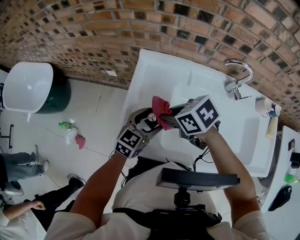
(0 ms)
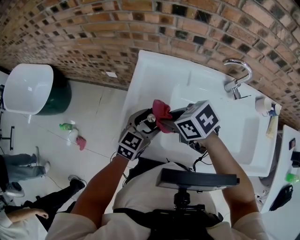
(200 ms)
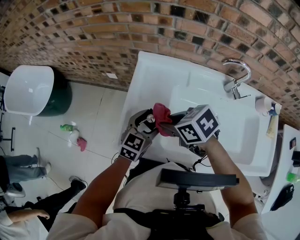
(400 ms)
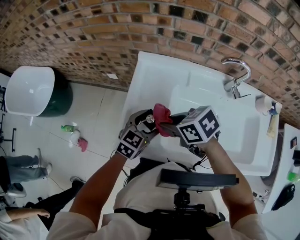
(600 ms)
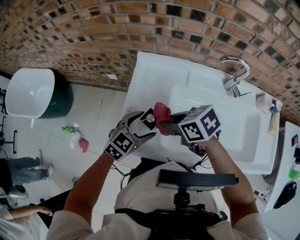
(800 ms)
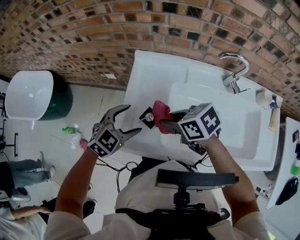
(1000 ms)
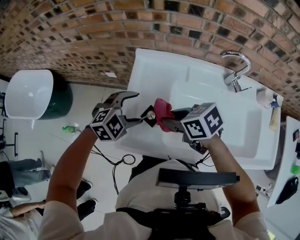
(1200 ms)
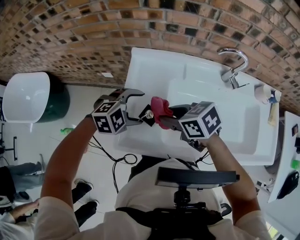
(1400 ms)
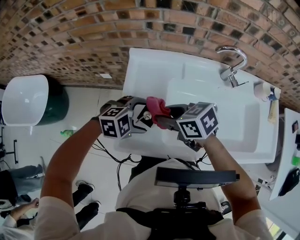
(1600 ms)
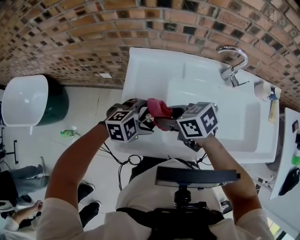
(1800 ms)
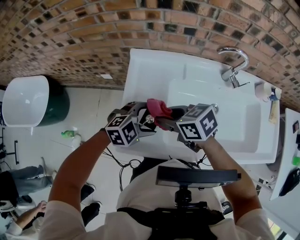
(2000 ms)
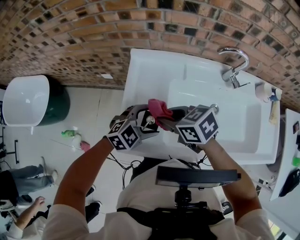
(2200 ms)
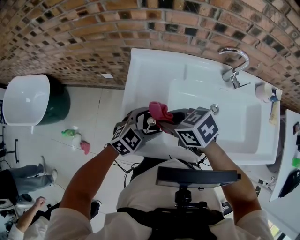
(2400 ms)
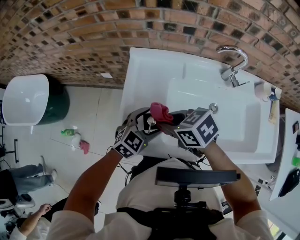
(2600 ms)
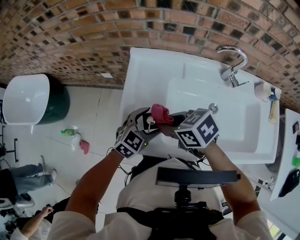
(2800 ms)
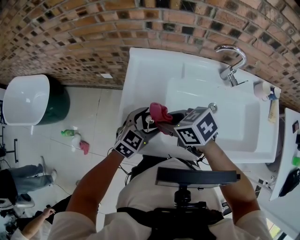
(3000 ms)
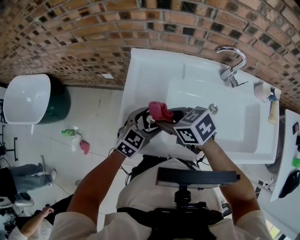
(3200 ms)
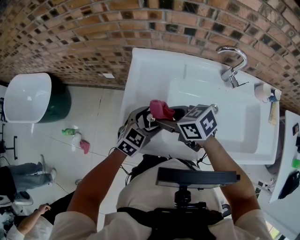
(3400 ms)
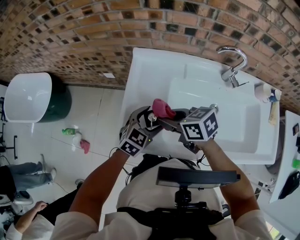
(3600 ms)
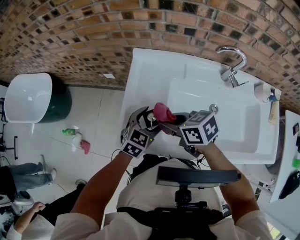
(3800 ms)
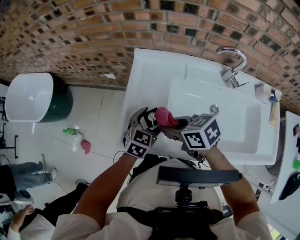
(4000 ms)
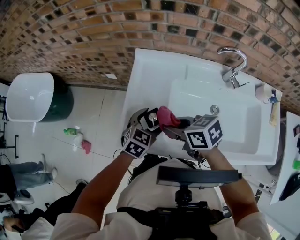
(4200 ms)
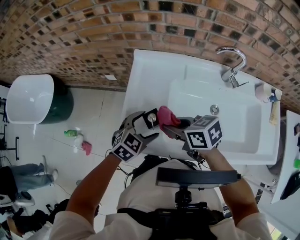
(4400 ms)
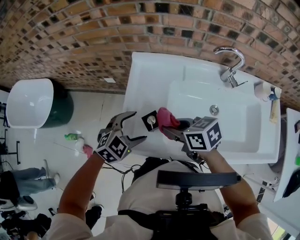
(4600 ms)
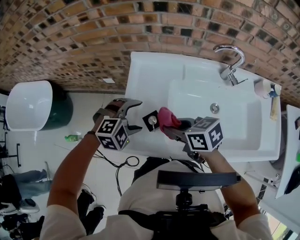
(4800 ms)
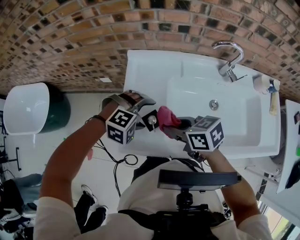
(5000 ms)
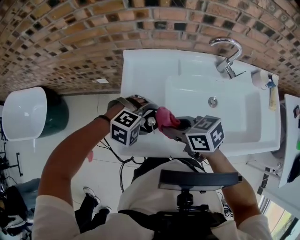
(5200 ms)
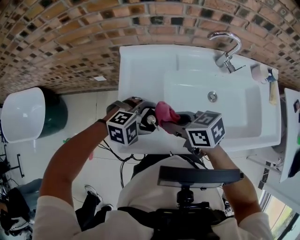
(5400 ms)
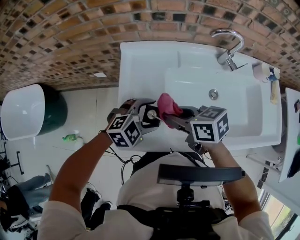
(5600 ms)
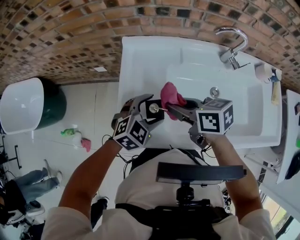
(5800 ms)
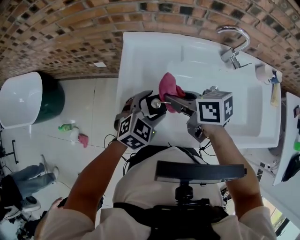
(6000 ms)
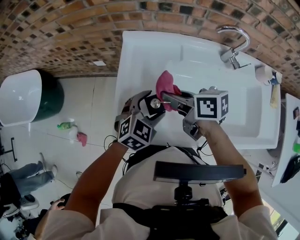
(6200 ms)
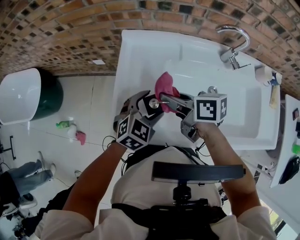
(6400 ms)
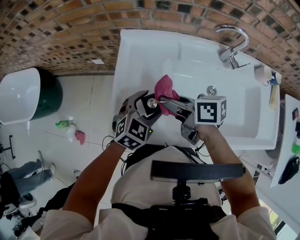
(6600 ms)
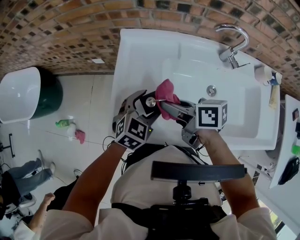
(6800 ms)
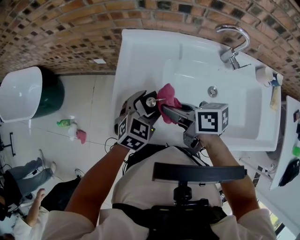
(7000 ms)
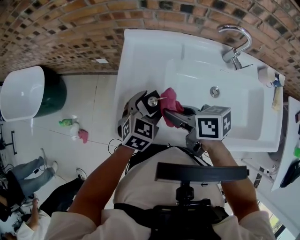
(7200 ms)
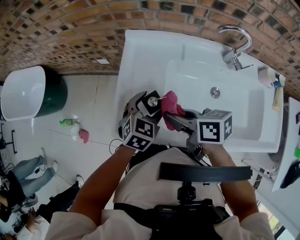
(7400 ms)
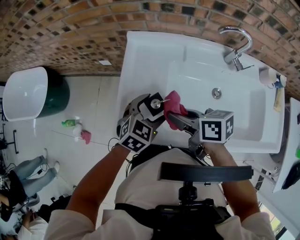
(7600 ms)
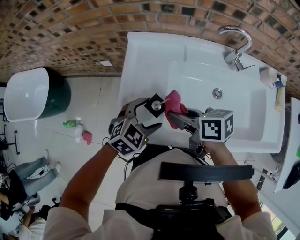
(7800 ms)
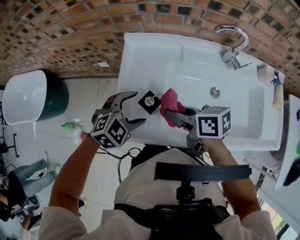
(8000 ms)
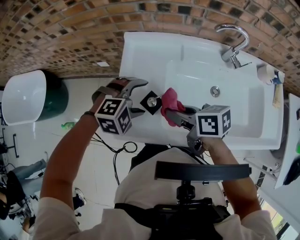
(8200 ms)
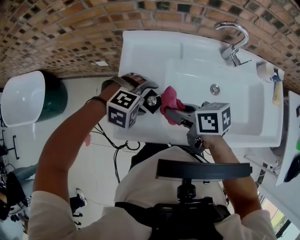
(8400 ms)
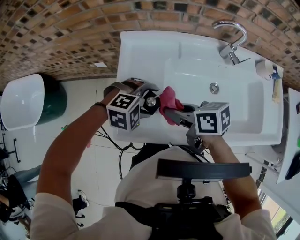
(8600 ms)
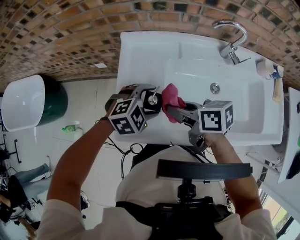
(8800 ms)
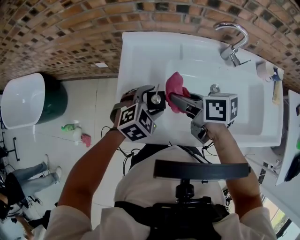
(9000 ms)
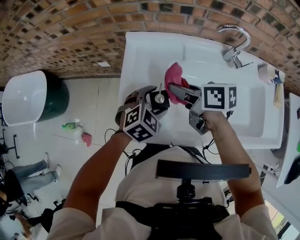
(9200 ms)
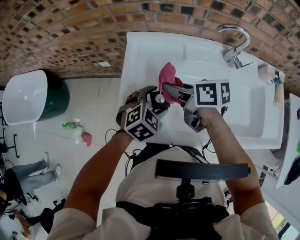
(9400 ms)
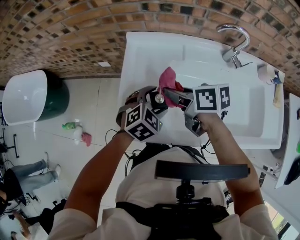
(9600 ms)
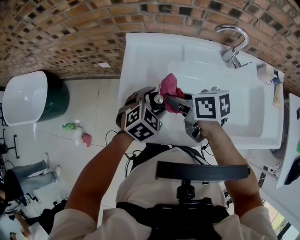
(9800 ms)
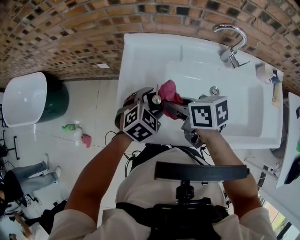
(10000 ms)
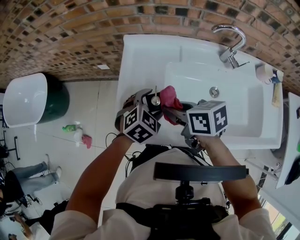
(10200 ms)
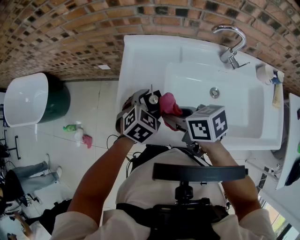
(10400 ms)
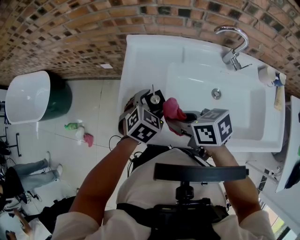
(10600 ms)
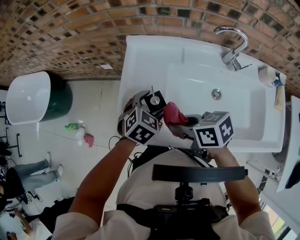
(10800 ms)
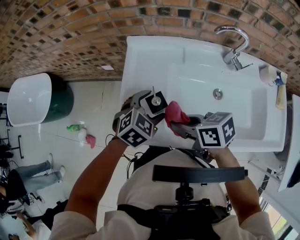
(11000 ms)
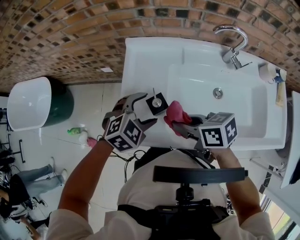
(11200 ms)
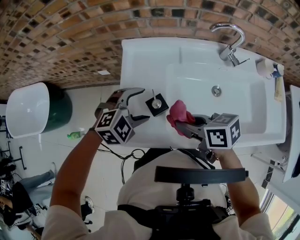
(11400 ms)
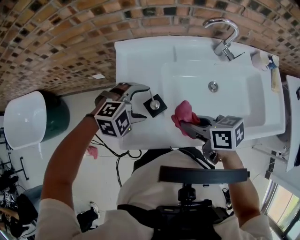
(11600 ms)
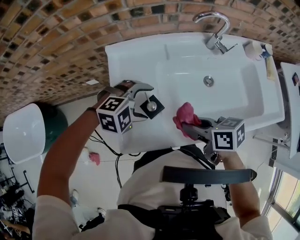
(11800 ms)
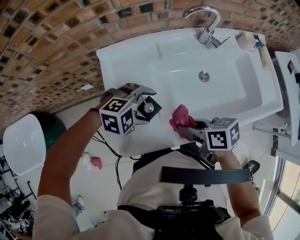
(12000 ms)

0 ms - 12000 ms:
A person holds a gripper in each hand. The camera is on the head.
0 ms - 1600 ms: The left gripper changes its angle by about 60 degrees.
1600 ms - 3000 ms: The left gripper rotates about 50 degrees.
3000 ms - 4400 ms: The right gripper opens, then closes again.
4400 ms - 6000 ms: The left gripper moves some 5 cm. Meanwhile the right gripper moves some 5 cm.
6000 ms - 7600 ms: The right gripper heads backward, covering roughly 5 cm.
7600 ms - 9000 ms: The right gripper changes place by approximately 5 cm. The left gripper changes its angle by some 20 degrees.
9000 ms - 10400 ms: The right gripper travels backward by about 5 cm.
10400 ms - 12000 ms: The right gripper moves some 5 cm, and turns by approximately 20 degrees. Meanwhile the left gripper twists approximately 60 degrees clockwise, seen from behind.

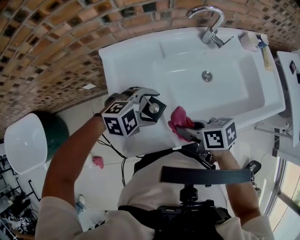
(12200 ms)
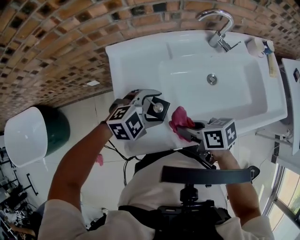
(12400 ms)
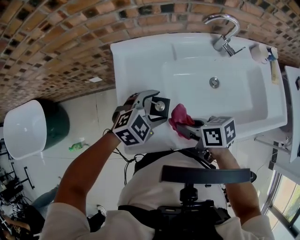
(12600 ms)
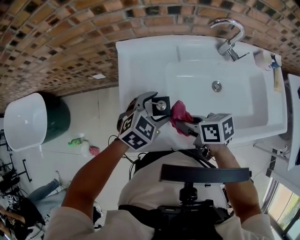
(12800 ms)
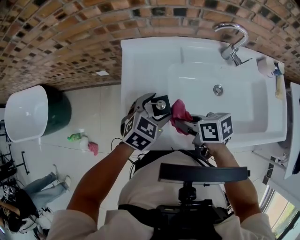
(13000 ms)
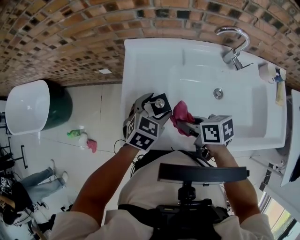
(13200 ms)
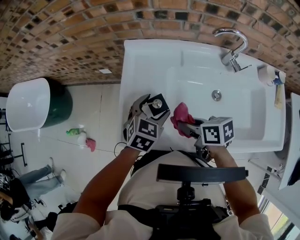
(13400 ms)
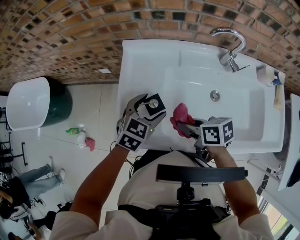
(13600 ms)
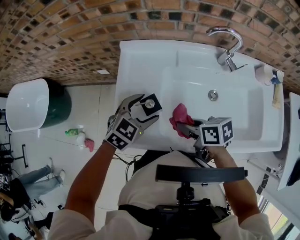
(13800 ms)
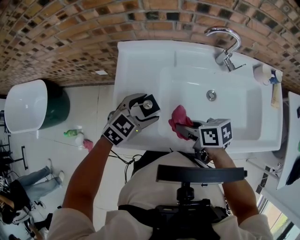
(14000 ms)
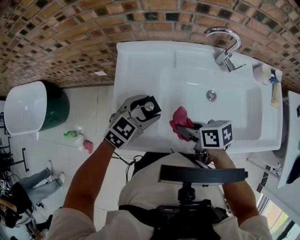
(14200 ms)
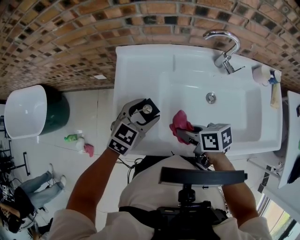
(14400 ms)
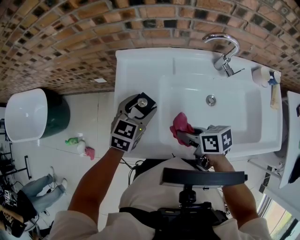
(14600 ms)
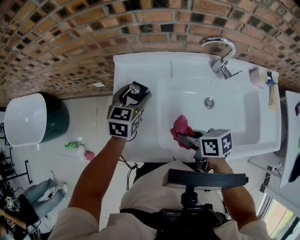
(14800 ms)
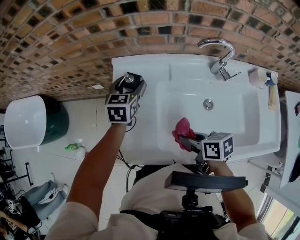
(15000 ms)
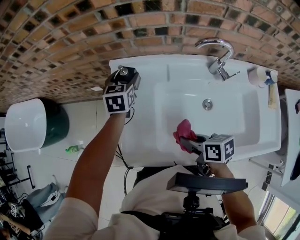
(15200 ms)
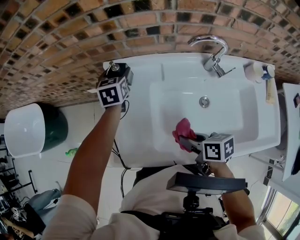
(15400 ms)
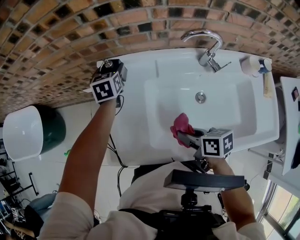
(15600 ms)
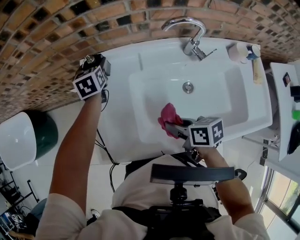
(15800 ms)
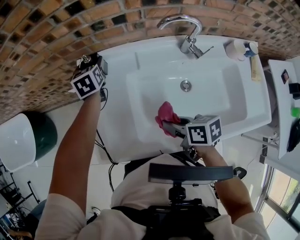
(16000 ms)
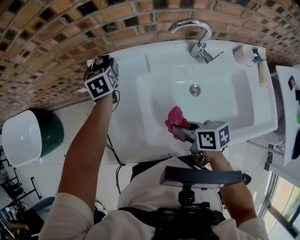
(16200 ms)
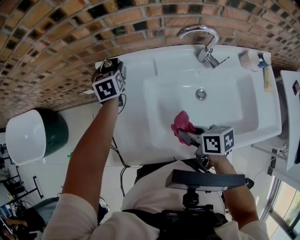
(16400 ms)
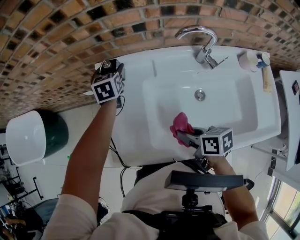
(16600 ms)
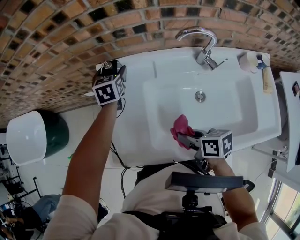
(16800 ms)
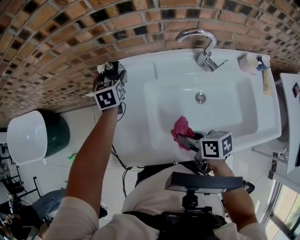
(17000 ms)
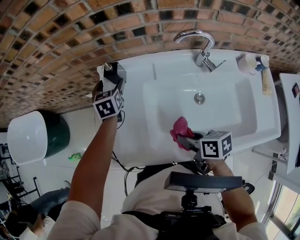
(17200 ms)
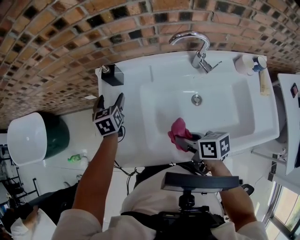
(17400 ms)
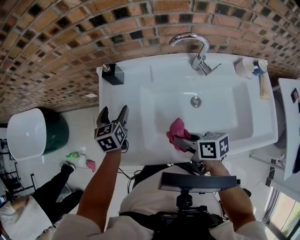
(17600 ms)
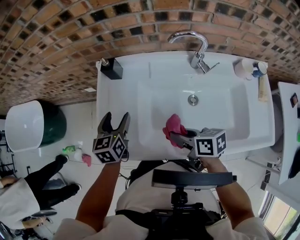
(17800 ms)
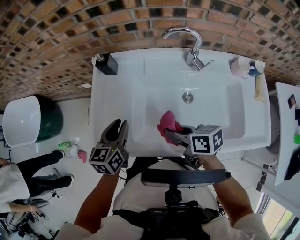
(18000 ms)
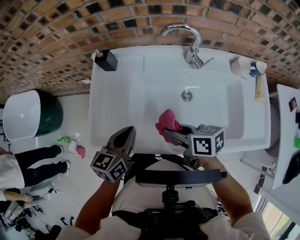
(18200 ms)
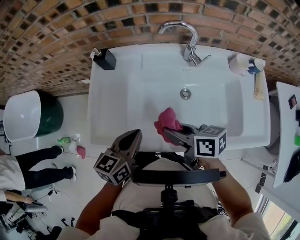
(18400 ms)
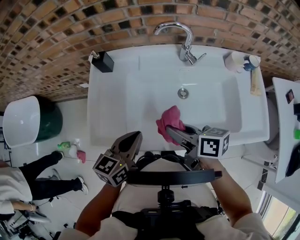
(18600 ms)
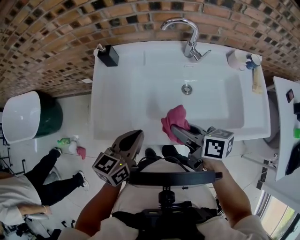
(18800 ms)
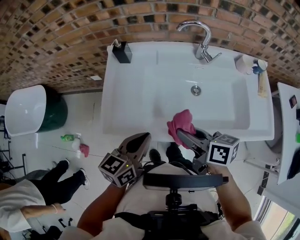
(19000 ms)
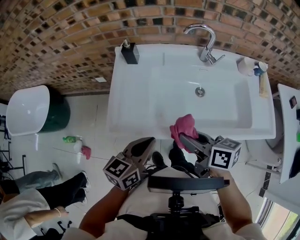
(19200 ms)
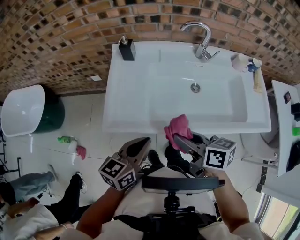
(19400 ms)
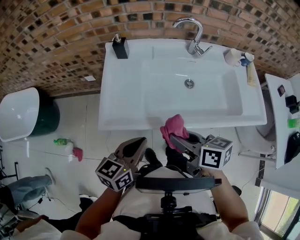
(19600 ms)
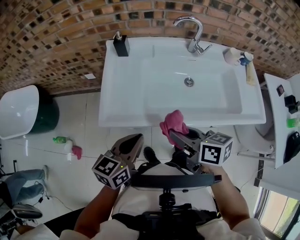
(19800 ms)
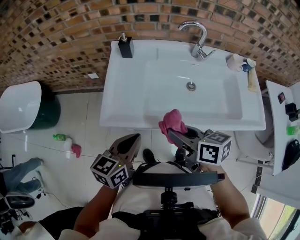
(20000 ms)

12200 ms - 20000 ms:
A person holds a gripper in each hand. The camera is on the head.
12200 ms - 13800 ms: The left gripper changes its angle by some 60 degrees.
13800 ms - 15400 ms: The right gripper heads to the right, covering approximately 5 cm; the left gripper goes approximately 25 cm forward, and changes its angle by roughly 40 degrees.
15400 ms - 16800 ms: The grippers move only a little.
16800 ms - 18400 ms: The left gripper moves backward, about 40 cm, changes its angle by about 30 degrees, and closes. The right gripper heads backward and upward, covering roughly 10 cm.
18400 ms - 20000 ms: The left gripper heads backward and to the left, covering about 20 cm, while the right gripper heads backward, to the left and upward, covering approximately 20 cm.

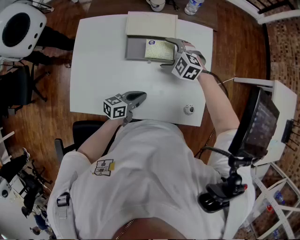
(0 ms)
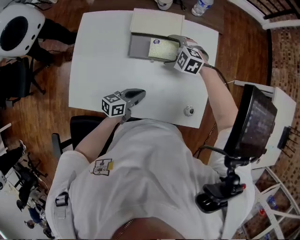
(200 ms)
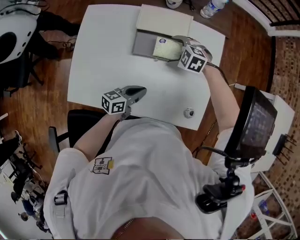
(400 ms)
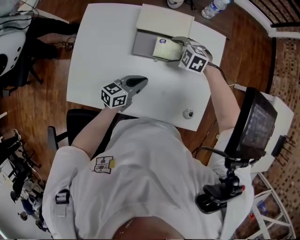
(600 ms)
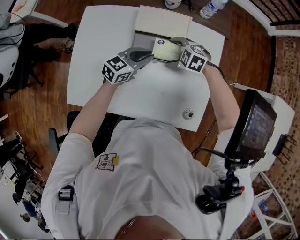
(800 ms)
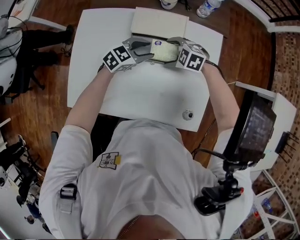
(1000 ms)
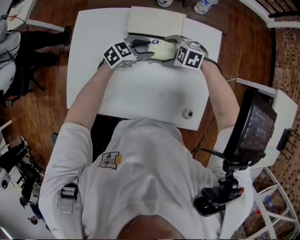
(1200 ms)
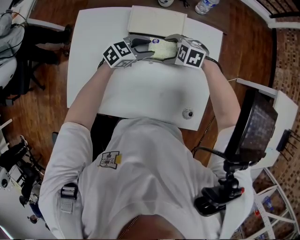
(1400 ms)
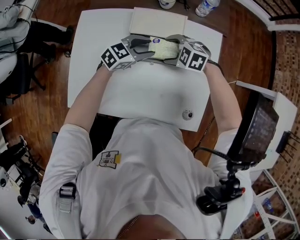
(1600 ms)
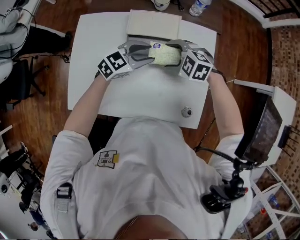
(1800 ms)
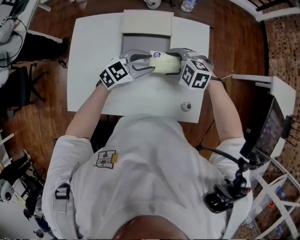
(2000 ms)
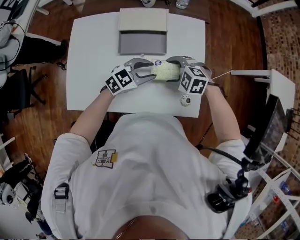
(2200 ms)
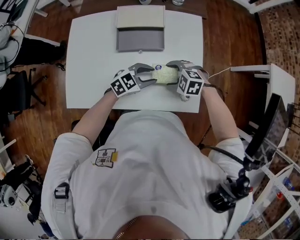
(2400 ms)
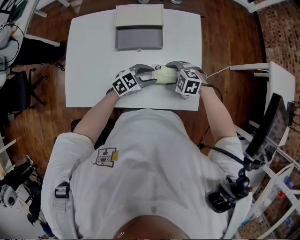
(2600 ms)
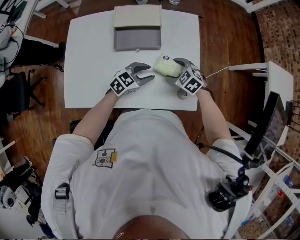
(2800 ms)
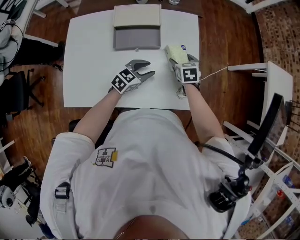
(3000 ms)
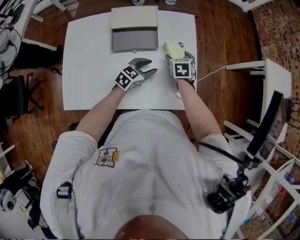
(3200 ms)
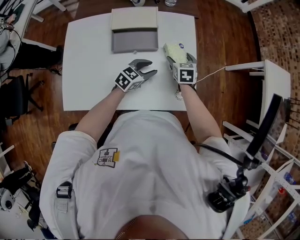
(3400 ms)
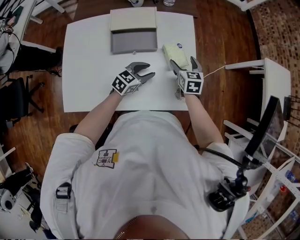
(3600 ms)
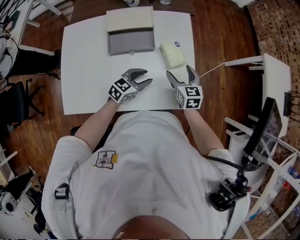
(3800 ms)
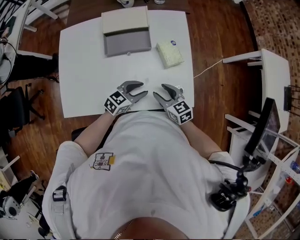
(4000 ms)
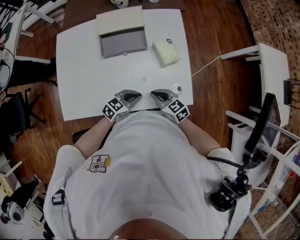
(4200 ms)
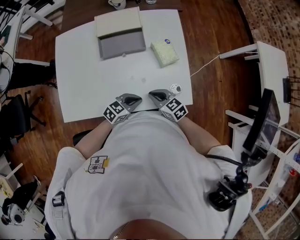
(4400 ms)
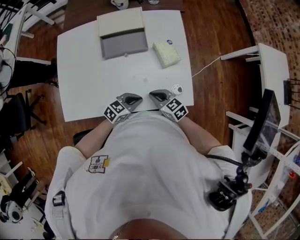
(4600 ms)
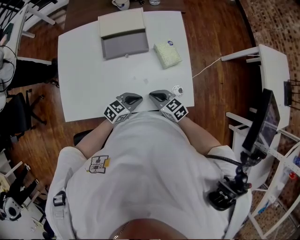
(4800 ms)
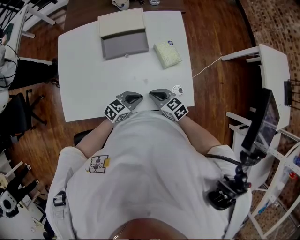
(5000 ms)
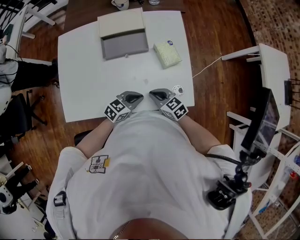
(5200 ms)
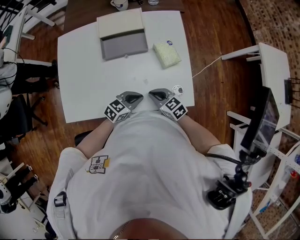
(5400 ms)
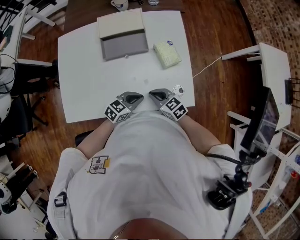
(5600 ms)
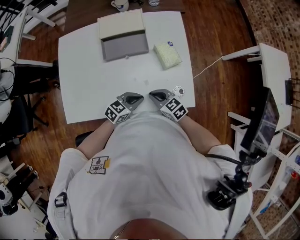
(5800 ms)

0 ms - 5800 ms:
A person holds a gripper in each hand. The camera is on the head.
0 ms - 1400 ms: The left gripper moves some 20 cm, rotates around the line of its fingers by about 40 degrees, clockwise from behind, and opens up.
1400 ms - 2800 ms: The right gripper moves roughly 5 cm upward and comes back, and turns by some 30 degrees. Meanwhile the left gripper reaches some 10 cm upward, then returns.
2800 ms - 4400 ms: The left gripper shifts by approximately 15 cm, and closes its fingers, while the right gripper ends up about 15 cm from where it was, rotates about 40 degrees, and closes up.
4400 ms - 5800 ms: The grippers move only a little.
